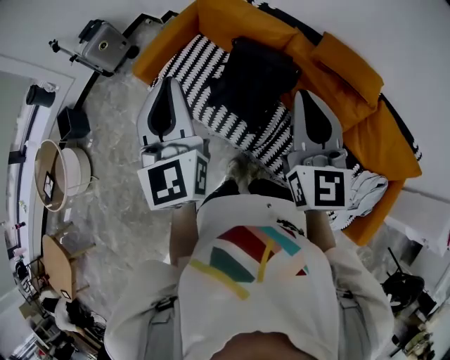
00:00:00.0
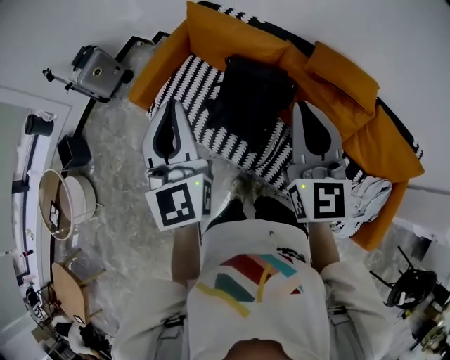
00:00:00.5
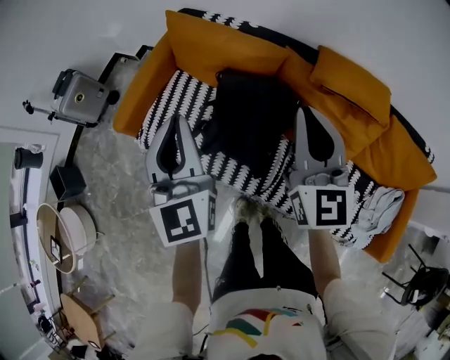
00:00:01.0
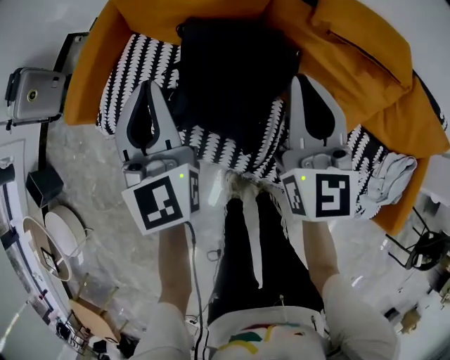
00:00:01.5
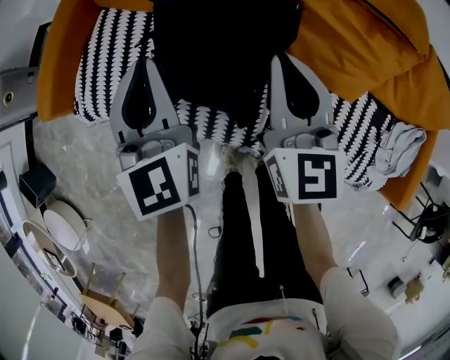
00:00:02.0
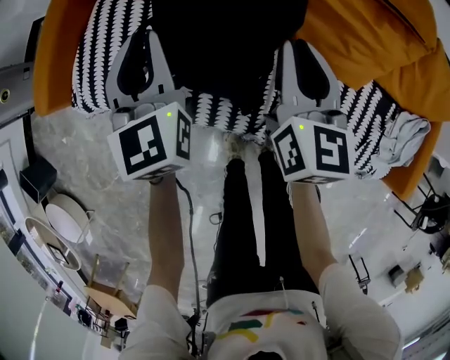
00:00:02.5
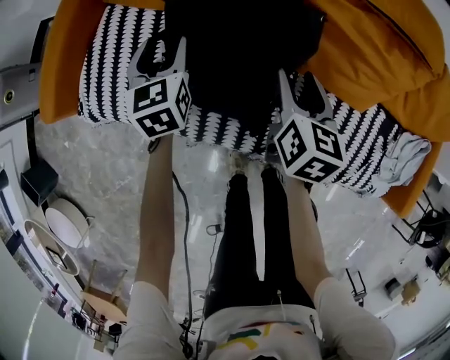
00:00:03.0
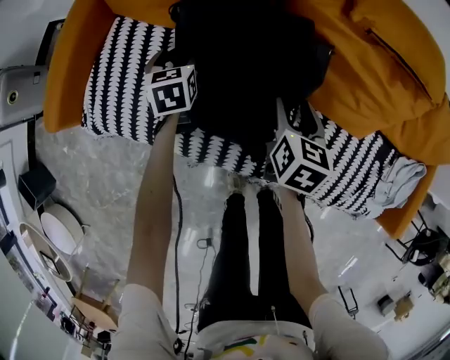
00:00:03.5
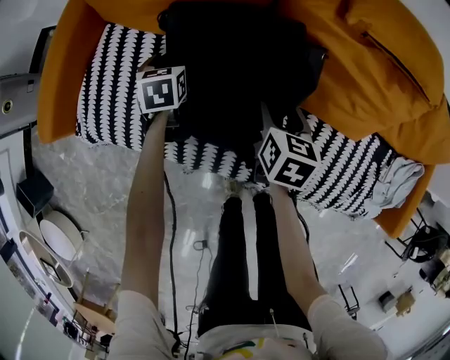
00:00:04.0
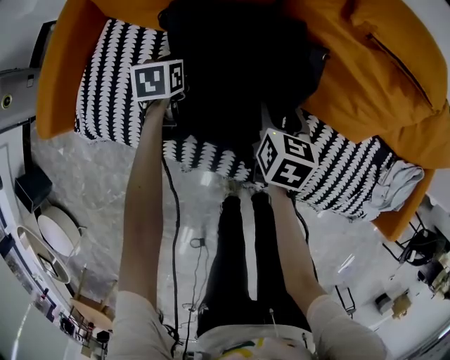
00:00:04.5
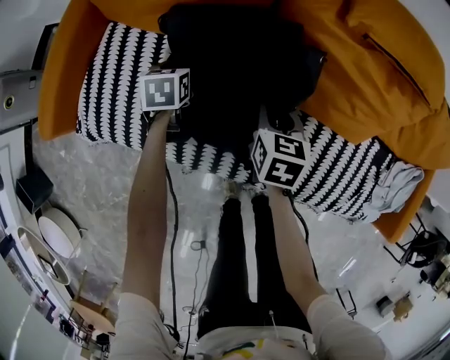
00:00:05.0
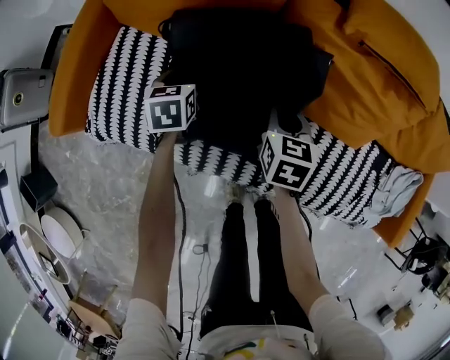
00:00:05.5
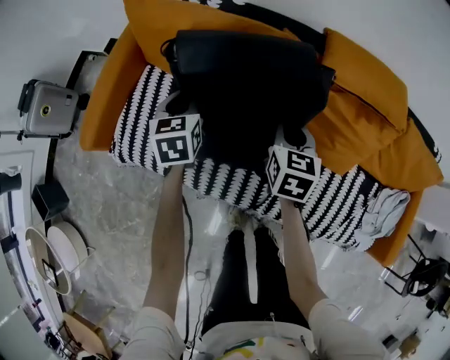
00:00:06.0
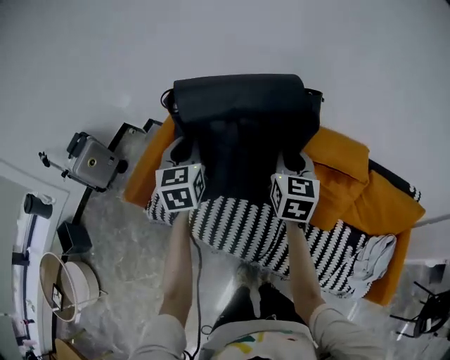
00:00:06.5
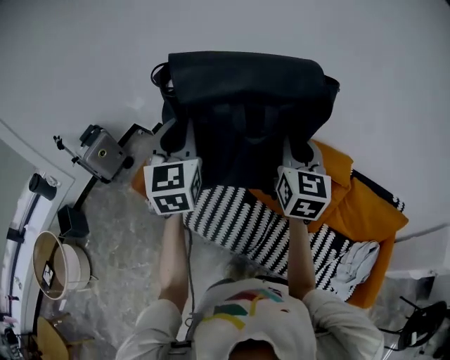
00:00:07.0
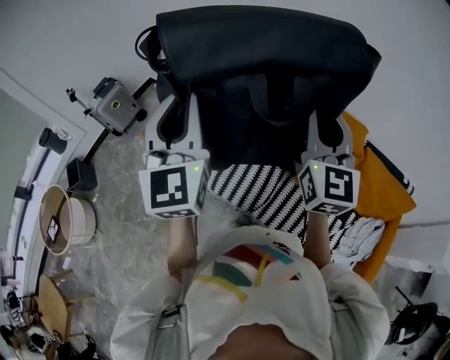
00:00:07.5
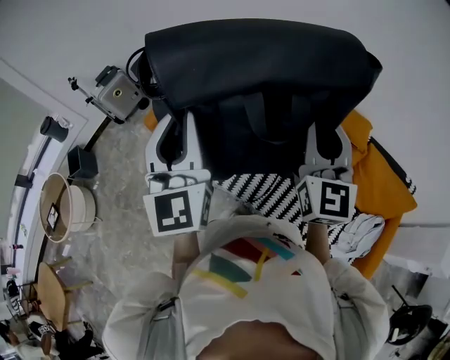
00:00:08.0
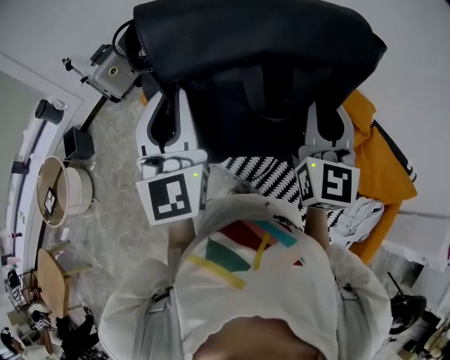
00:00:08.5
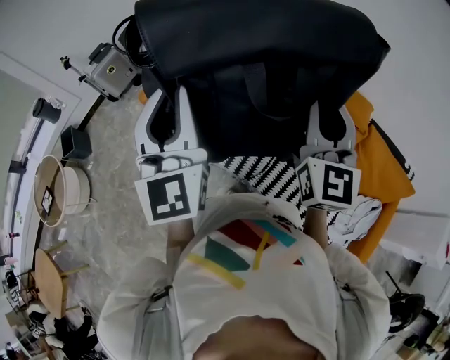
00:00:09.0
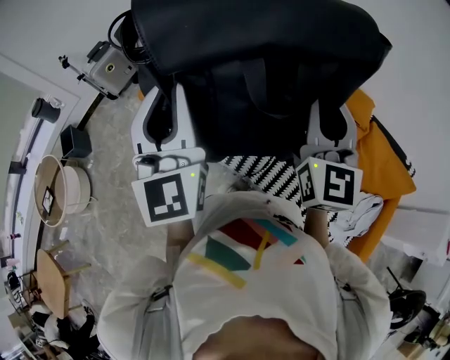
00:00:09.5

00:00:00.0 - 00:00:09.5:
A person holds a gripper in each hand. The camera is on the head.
00:00:00.0 - 00:00:02.0: Both grippers move downward and forward, some 40 cm. The right gripper turns by approximately 20 degrees. The left gripper rotates roughly 20 degrees.
00:00:02.0 - 00:00:04.0: The left gripper moves downward and forward, approximately 30 cm, tilts its fingers approximately 40 degrees downward, and opens; the right gripper moves downward, about 20 cm, points its fingers about 30 degrees further downward, and opens.
00:00:04.0 - 00:00:05.5: The left gripper changes place by roughly 5 cm, and closes. The right gripper closes its fingers.
00:00:05.5 - 00:00:07.5: The left gripper is displaced upward and backward by approximately 70 cm, and points its fingers approximately 60 degrees further upward. The right gripper moves upward, some 60 cm, and tilts its fingers approximately 50 degrees upward.
00:00:07.5 - 00:00:09.5: The left gripper moves backward, some 5 cm, while the right gripper moves roughly 5 cm.

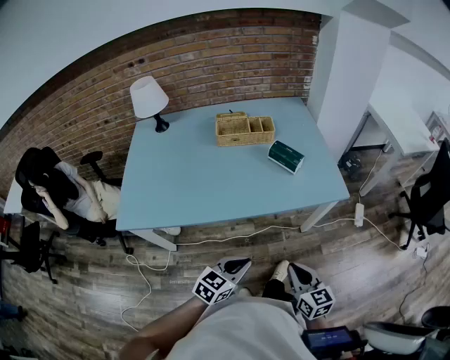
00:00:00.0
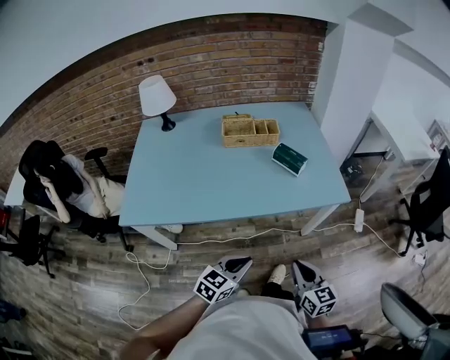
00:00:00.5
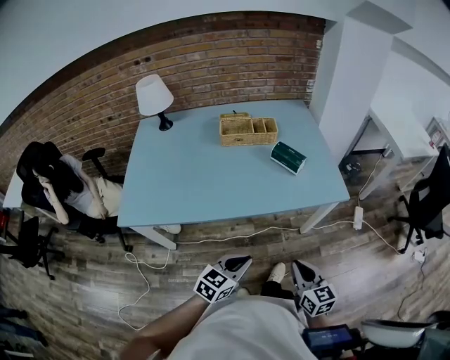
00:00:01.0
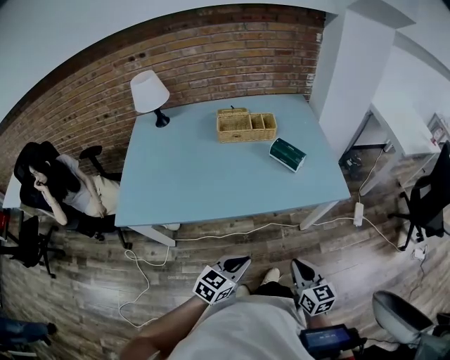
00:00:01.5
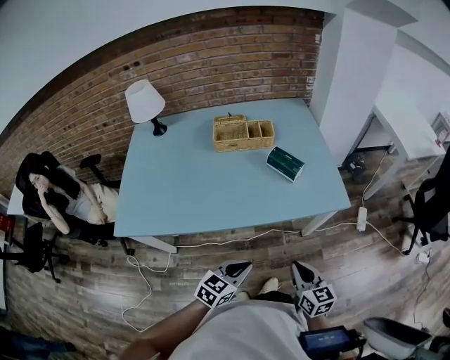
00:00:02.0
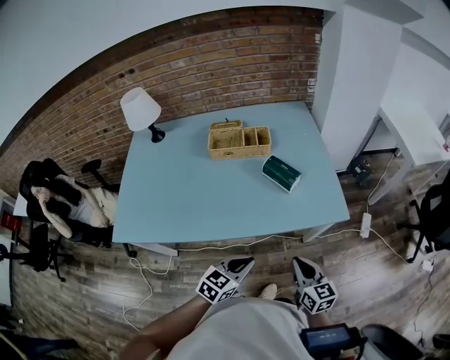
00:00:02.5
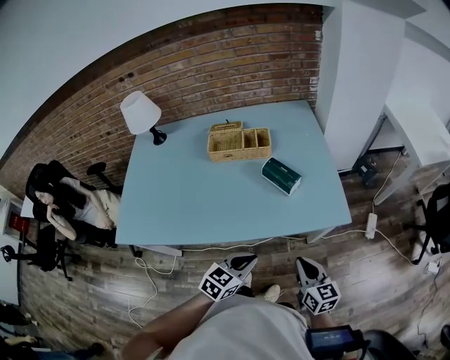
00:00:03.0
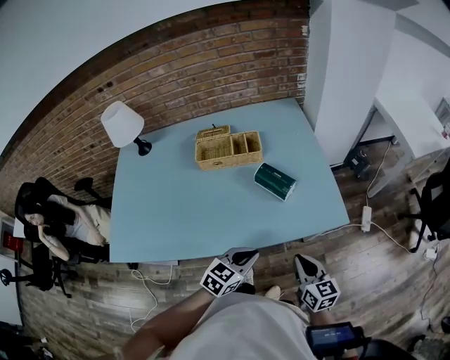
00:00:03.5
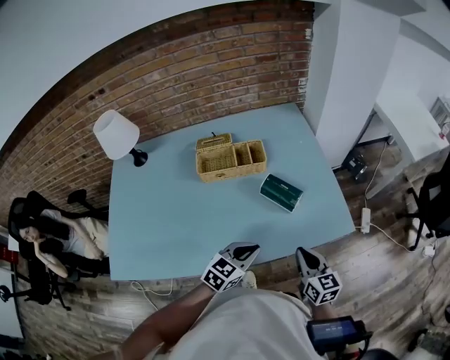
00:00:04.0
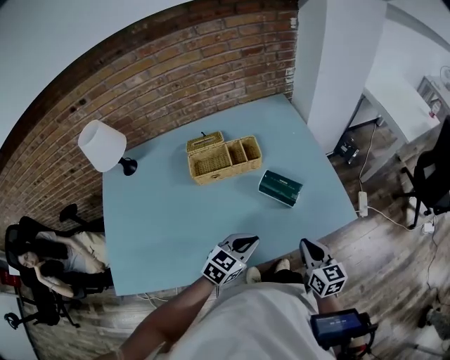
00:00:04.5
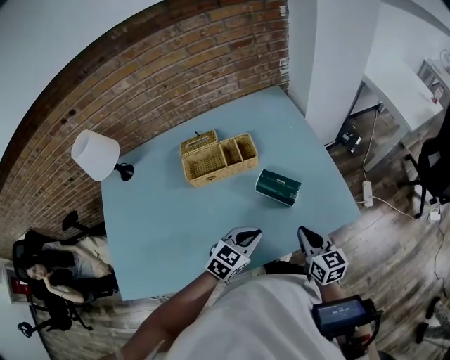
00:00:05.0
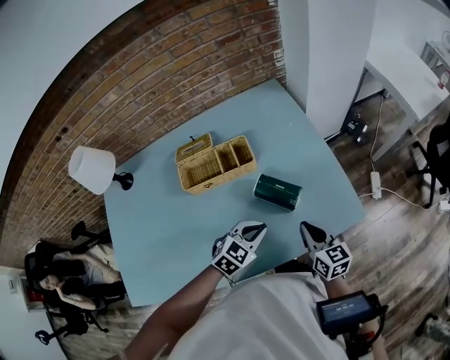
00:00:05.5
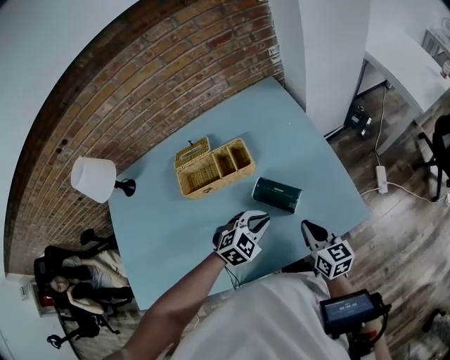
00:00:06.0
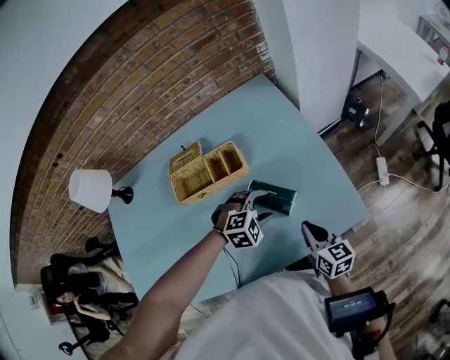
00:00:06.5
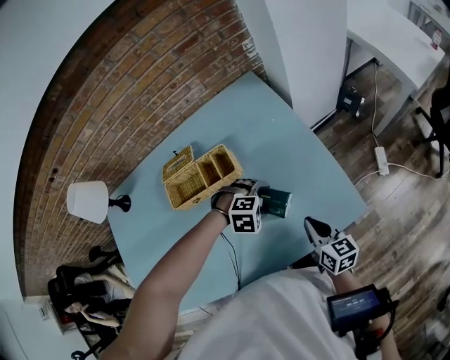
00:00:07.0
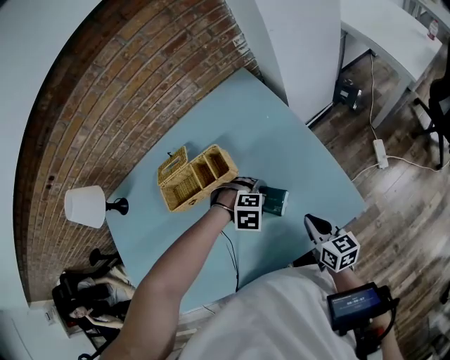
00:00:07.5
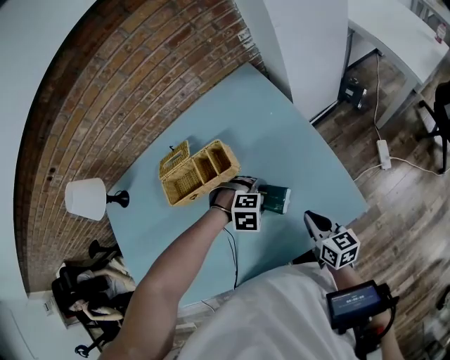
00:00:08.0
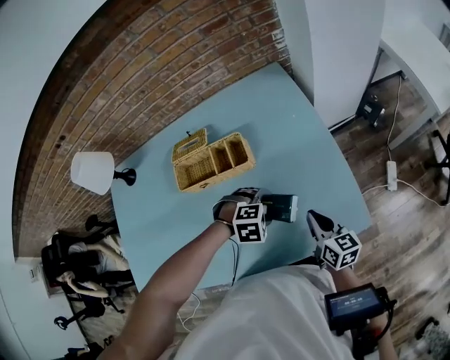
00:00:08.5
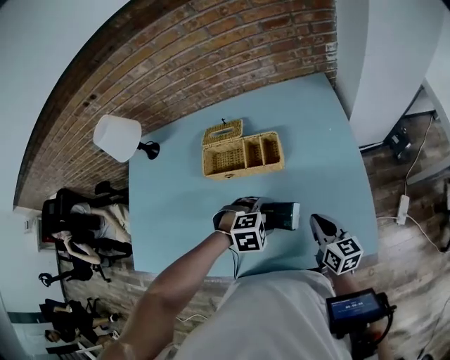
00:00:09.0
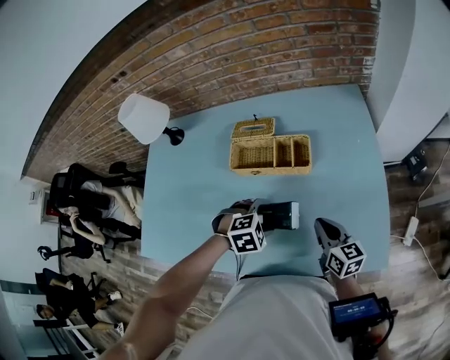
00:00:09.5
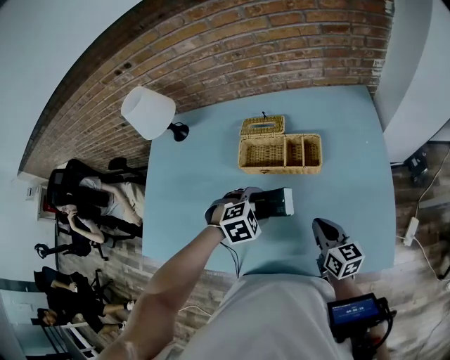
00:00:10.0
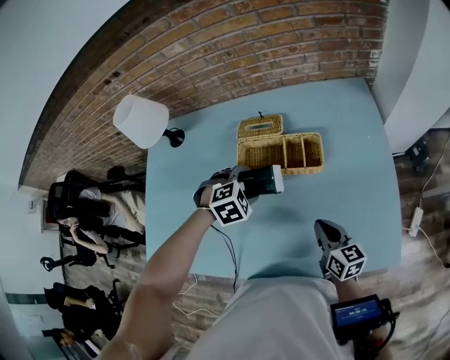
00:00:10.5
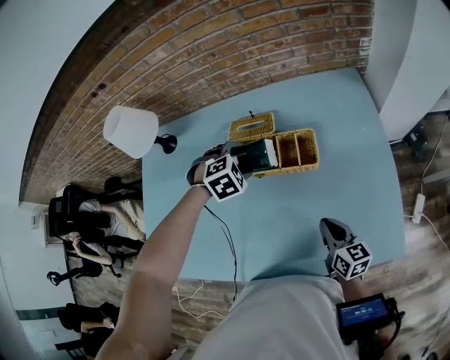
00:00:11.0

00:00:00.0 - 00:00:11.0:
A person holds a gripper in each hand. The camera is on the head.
00:00:00.0 - 00:00:02.0: The right gripper travels forward by roughly 5 cm.
00:00:02.0 - 00:00:03.5: Both grippers travel together forward, roughly 15 cm.
00:00:03.5 - 00:00:05.5: The left gripper shifts about 15 cm forward, and turns by approximately 20 degrees. The right gripper travels forward and to the left by roughly 15 cm.
00:00:05.5 - 00:00:07.5: The right gripper moves about 10 cm, while the left gripper ends up some 15 cm from where it was, tips its fingers downward by roughly 40 degrees, and opens its fingers.
00:00:07.5 - 00:00:09.0: The right gripper moves about 10 cm. Meanwhile the left gripper changes place by some 10 cm, and rotates some 40 degrees.
00:00:09.0 - 00:00:11.0: The left gripper changes place by roughly 25 cm, while the right gripper ends up some 10 cm from where it was.

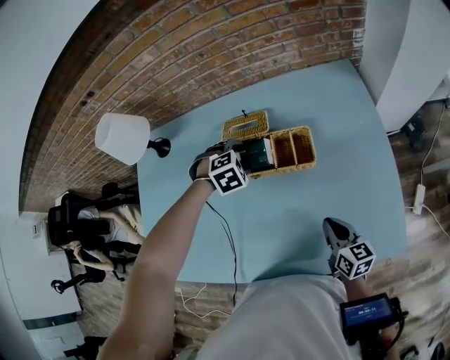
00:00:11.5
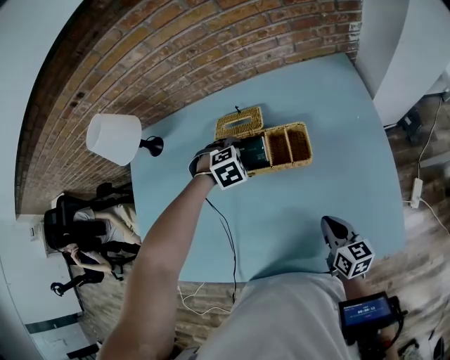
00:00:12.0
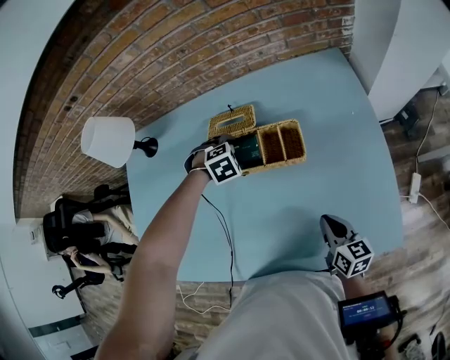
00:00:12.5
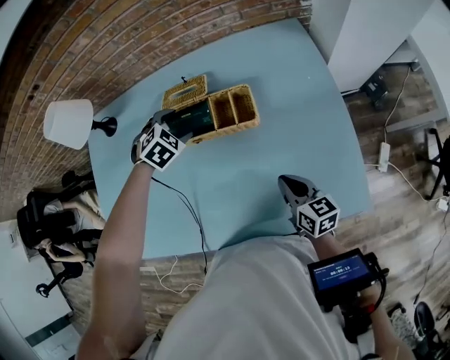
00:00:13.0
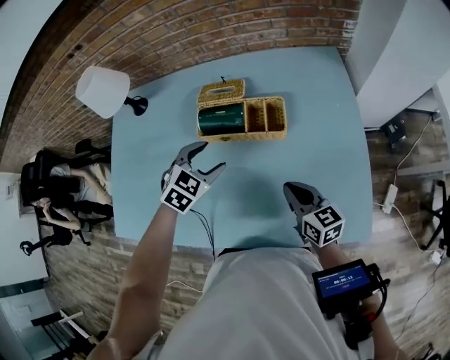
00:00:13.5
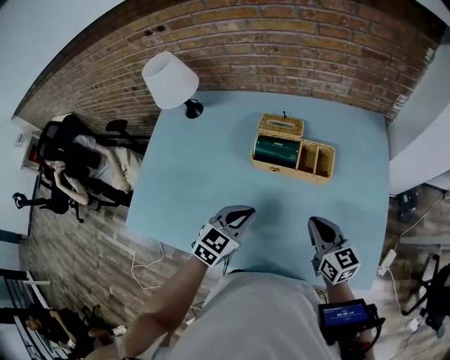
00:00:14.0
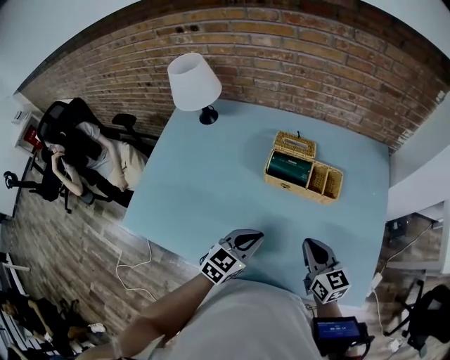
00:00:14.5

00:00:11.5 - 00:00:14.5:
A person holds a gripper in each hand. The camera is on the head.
00:00:11.5 - 00:00:13.0: The grippers stay close to where they were, moving slightly.
00:00:13.0 - 00:00:14.5: The left gripper goes about 25 cm backward, tilts its fingers some 40 degrees upward, and closes. The right gripper heads upward and to the left, covering roughly 10 cm, and swivels about 20 degrees.

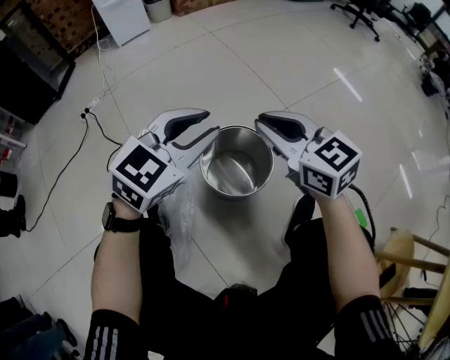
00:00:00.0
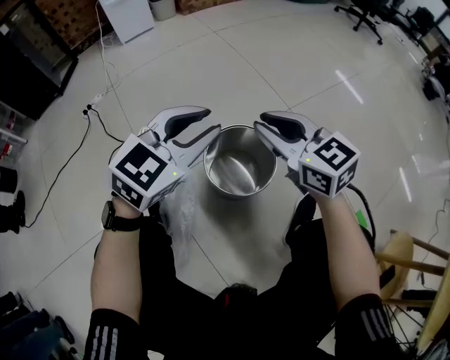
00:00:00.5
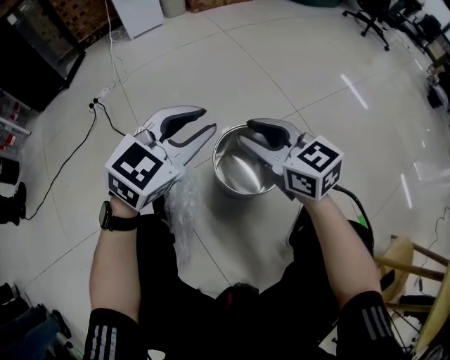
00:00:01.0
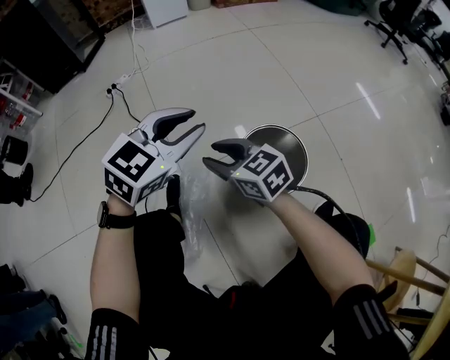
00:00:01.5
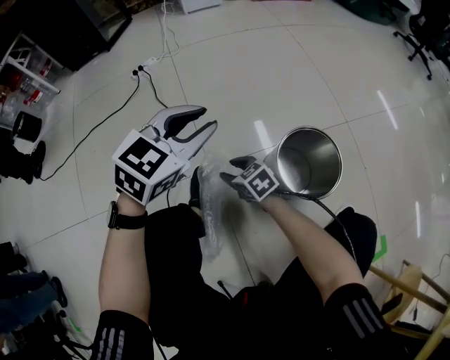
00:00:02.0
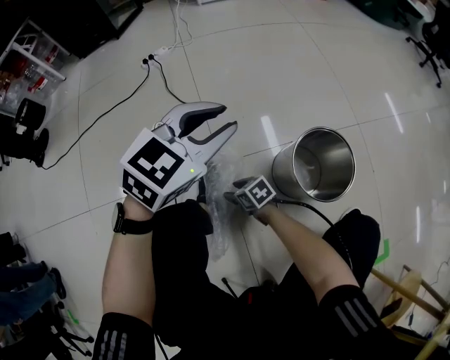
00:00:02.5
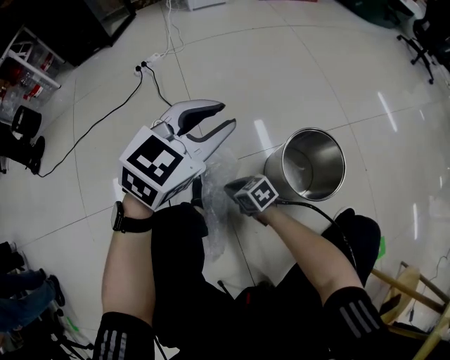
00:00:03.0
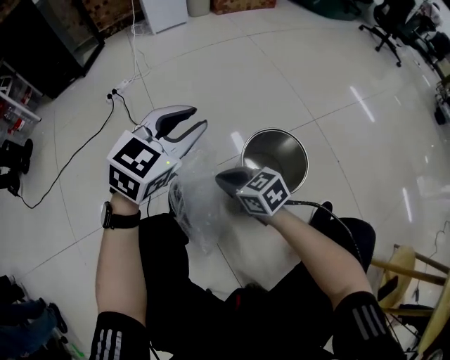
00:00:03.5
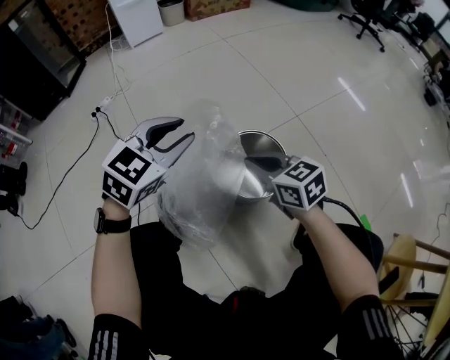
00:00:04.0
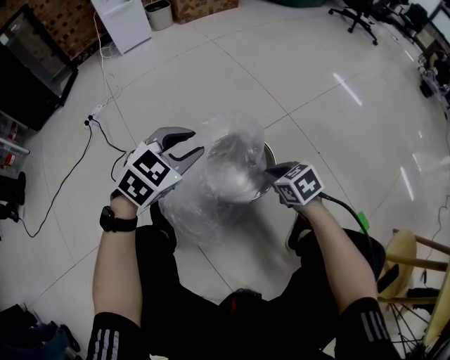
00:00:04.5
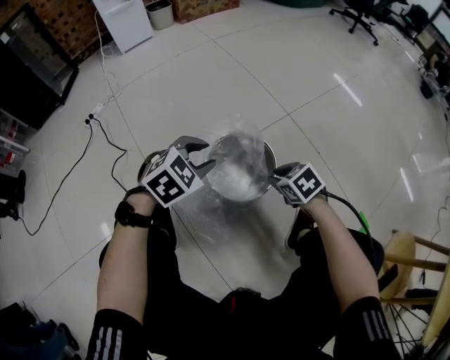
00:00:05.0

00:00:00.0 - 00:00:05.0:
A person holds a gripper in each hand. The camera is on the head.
00:00:00.0 - 00:00:02.5: The right gripper moves downward, roughly 40 cm, points its fingers approximately 30 degrees further downward, and opens up. The left gripper ends up some 25 cm from where it was.
00:00:02.5 - 00:00:05.0: The right gripper ends up about 40 cm from where it was, changes its angle by approximately 30 degrees, and closes; the left gripper changes place by approximately 25 cm, and swivels approximately 30 degrees.
